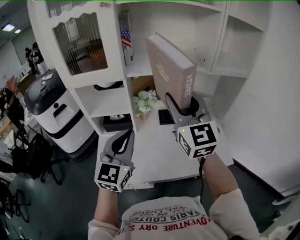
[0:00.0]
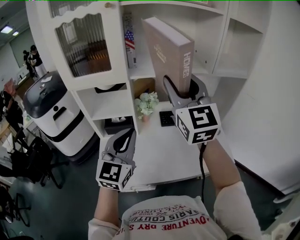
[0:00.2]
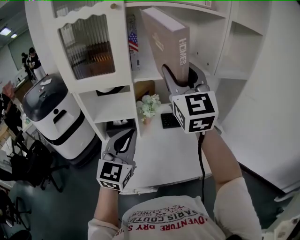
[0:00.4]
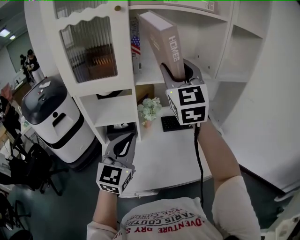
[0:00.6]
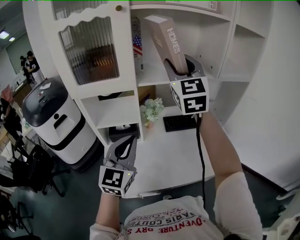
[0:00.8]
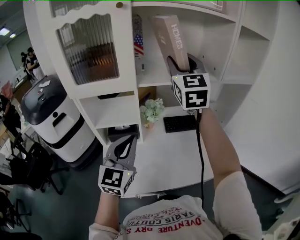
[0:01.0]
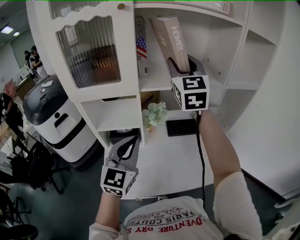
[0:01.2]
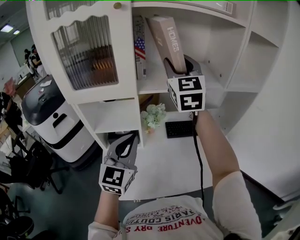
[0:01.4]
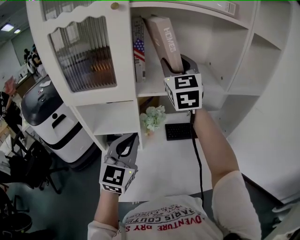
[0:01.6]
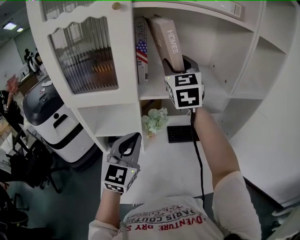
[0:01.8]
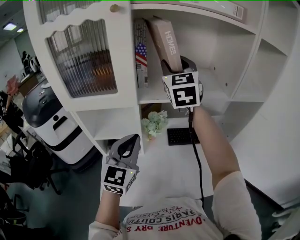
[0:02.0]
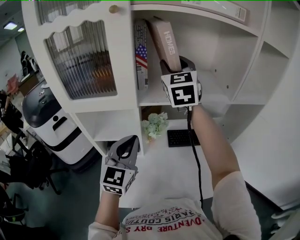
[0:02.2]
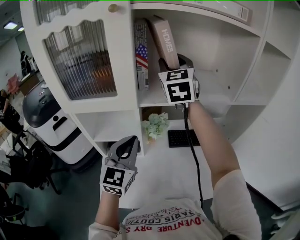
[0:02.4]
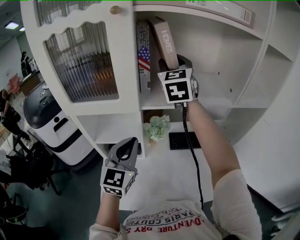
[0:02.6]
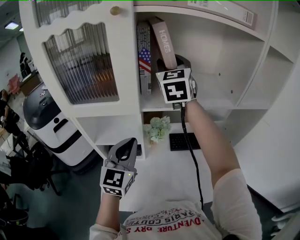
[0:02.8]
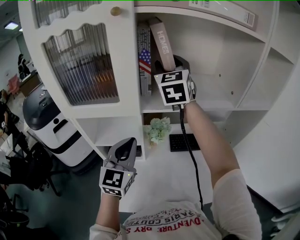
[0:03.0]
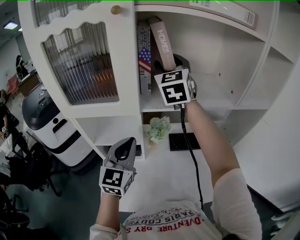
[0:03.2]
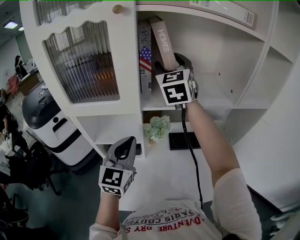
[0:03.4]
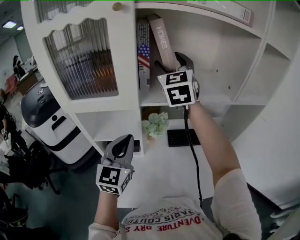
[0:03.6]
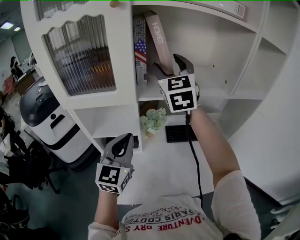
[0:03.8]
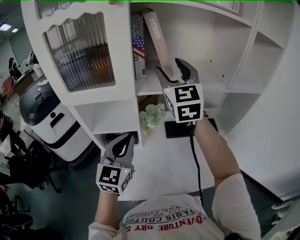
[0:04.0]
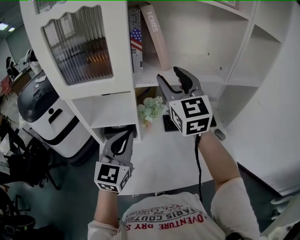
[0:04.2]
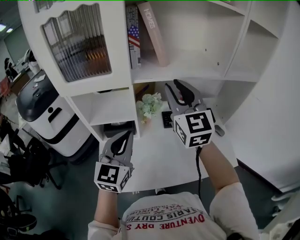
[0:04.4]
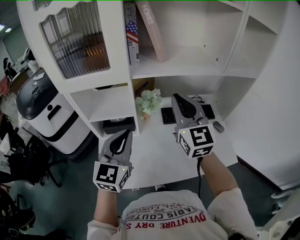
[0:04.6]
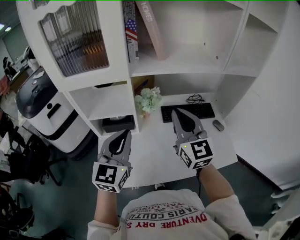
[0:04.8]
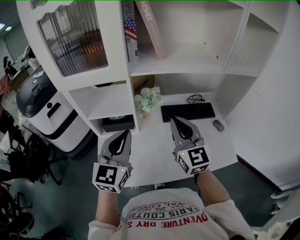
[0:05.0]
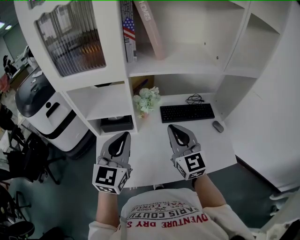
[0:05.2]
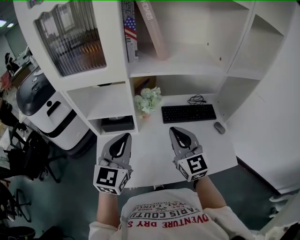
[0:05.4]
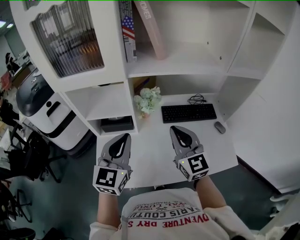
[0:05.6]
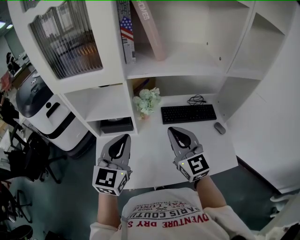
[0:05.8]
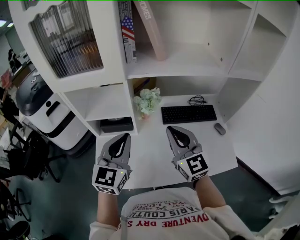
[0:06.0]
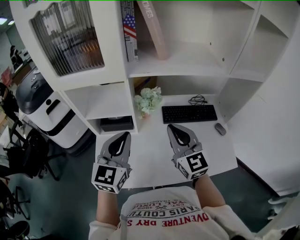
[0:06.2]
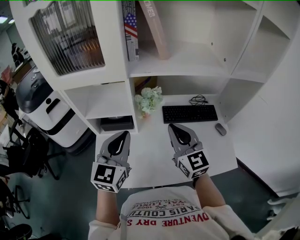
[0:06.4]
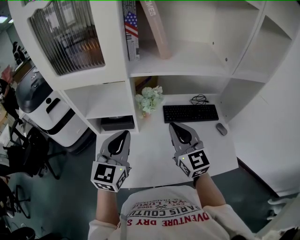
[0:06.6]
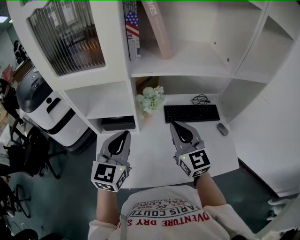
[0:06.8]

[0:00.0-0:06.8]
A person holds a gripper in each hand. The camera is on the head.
0:00.0 to 0:01.4: The right gripper is displaced forward by roughly 20 cm, while the left gripper is displaced forward and to the left by approximately 10 cm.
0:01.4 to 0:02.8: The left gripper travels forward by roughly 10 cm. Meanwhile the right gripper travels forward and to the left by about 10 cm.
0:02.8 to 0:04.0: The right gripper heads backward, covering approximately 10 cm. Meanwhile the left gripper goes some 5 cm backward.
0:04.0 to 0:05.4: The left gripper changes place by approximately 5 cm, while the right gripper heads downward and backward, covering about 30 cm, and closes its fingers.
0:05.4 to 0:06.8: The grippers stay close to where they were, moving slightly.

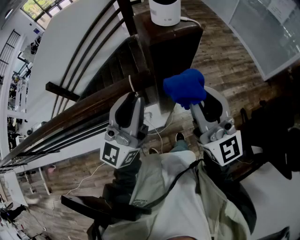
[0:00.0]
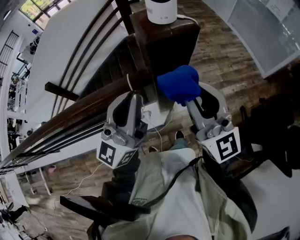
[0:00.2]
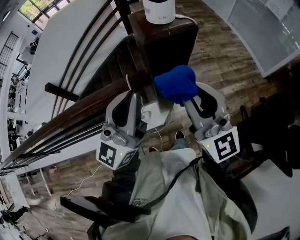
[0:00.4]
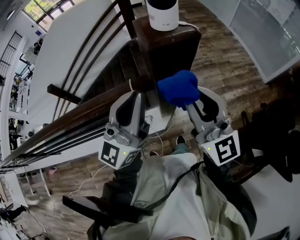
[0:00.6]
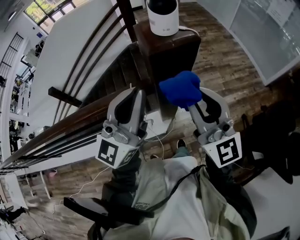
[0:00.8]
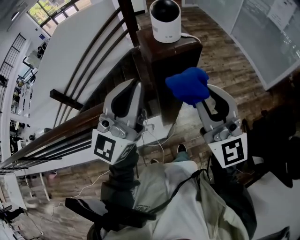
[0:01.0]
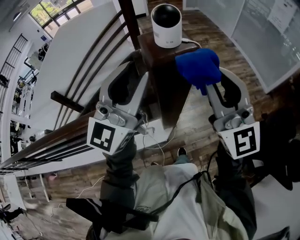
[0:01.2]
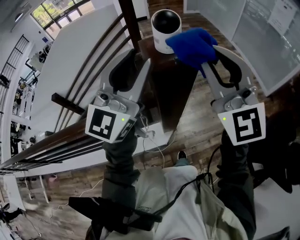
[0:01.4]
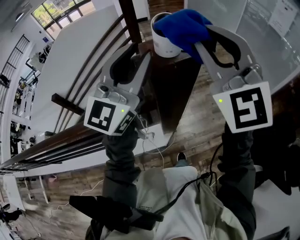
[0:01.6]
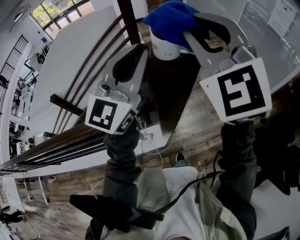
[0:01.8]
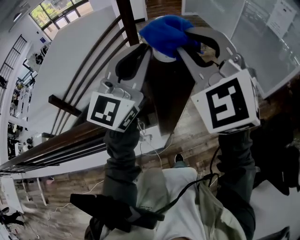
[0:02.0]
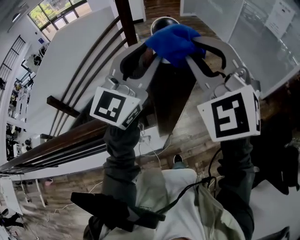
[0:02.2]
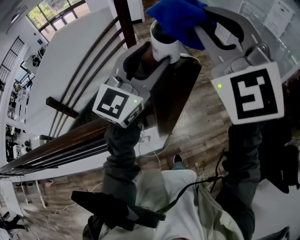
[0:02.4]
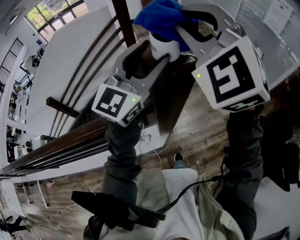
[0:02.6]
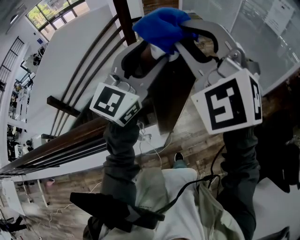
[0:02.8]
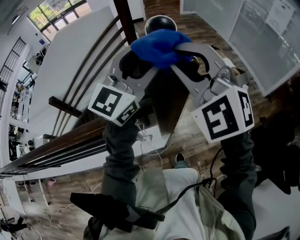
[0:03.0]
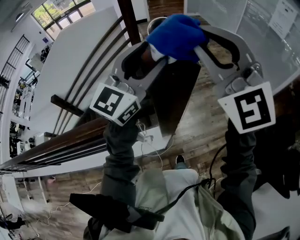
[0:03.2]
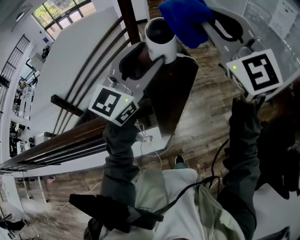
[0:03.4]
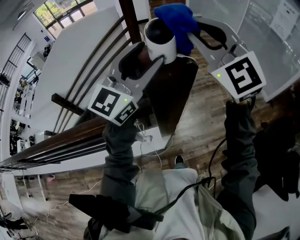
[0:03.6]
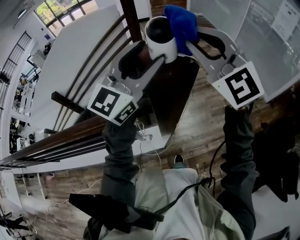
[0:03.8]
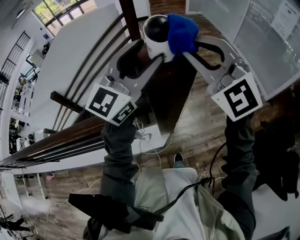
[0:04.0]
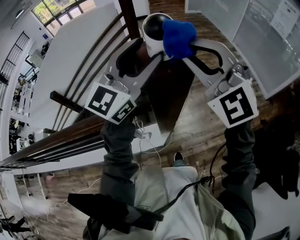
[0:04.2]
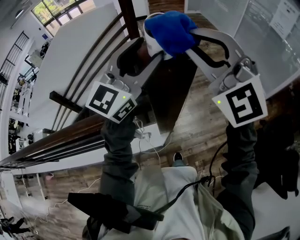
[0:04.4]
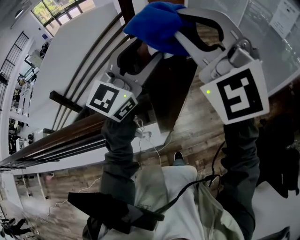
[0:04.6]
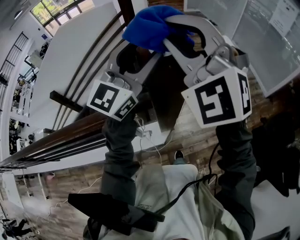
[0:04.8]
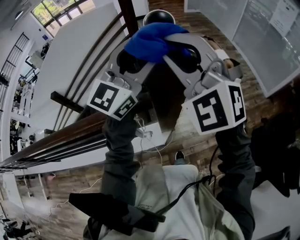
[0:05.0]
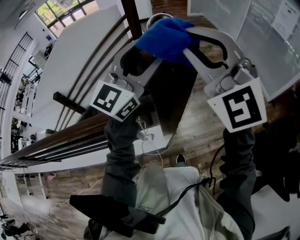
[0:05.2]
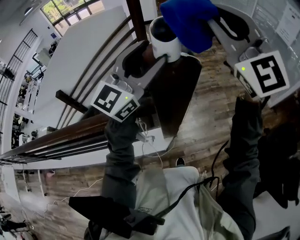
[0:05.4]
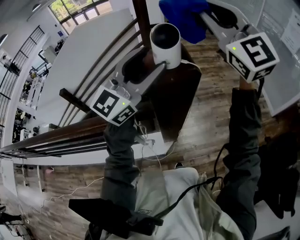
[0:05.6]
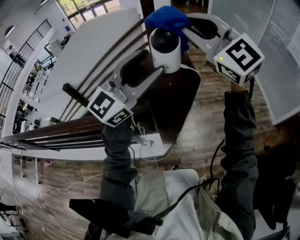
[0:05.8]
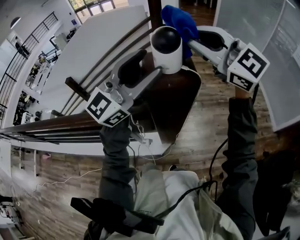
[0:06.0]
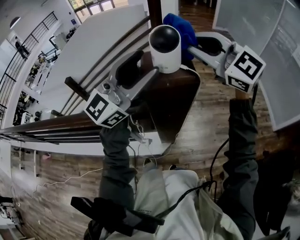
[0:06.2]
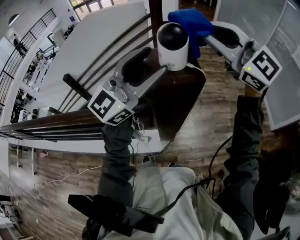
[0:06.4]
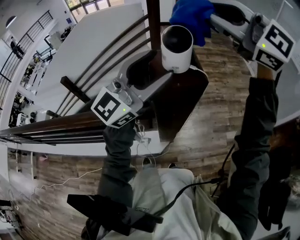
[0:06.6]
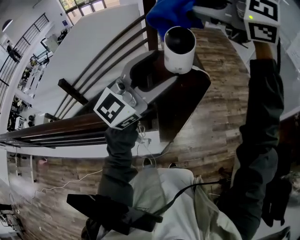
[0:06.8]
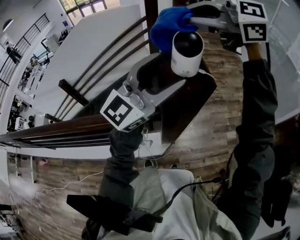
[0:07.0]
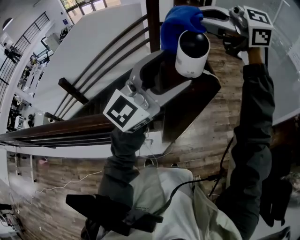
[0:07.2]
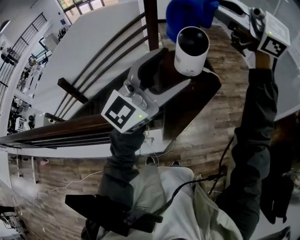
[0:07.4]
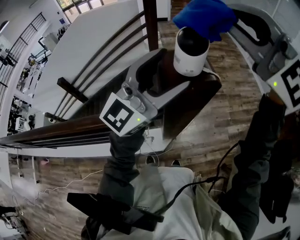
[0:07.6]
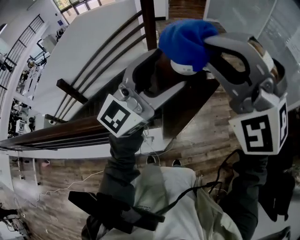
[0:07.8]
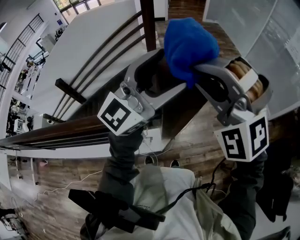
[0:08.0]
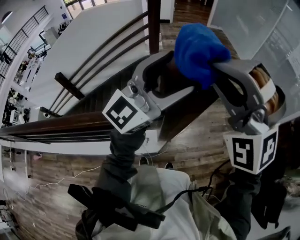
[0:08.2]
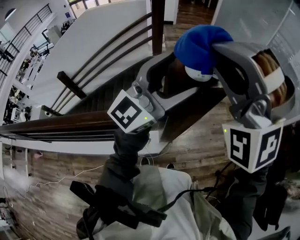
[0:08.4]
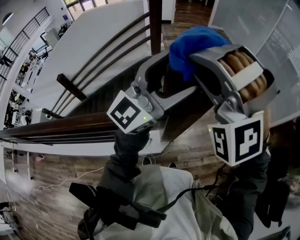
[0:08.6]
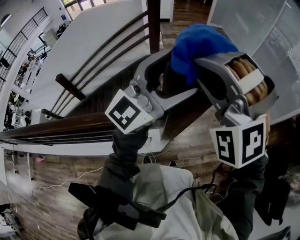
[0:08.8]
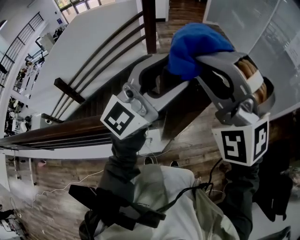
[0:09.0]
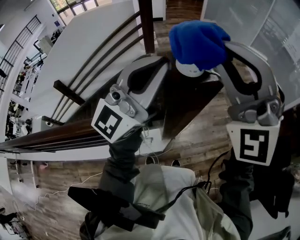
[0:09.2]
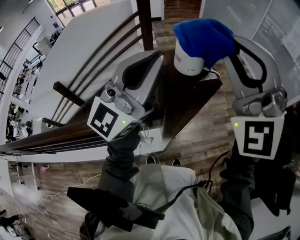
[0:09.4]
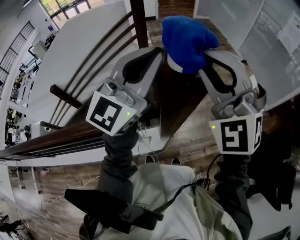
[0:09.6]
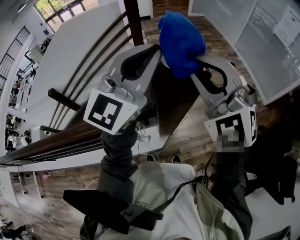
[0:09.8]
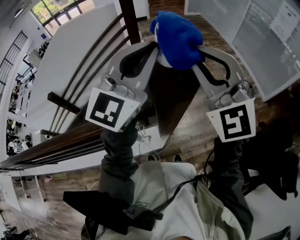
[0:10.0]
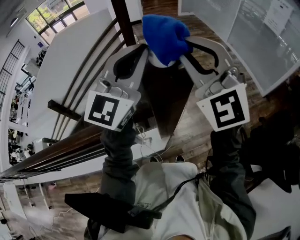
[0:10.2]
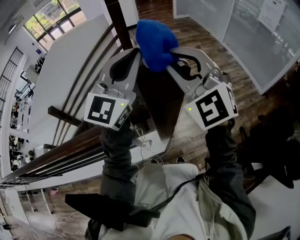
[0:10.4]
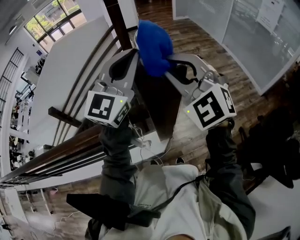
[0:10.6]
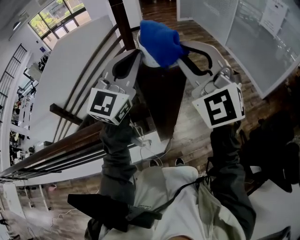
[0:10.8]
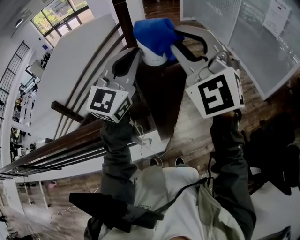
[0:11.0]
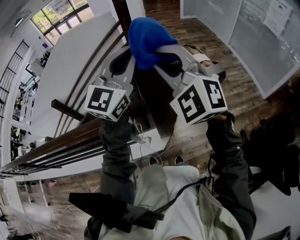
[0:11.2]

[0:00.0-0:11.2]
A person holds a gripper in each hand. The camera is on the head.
0:00.0 to 0:01.6: The left gripper travels forward and upward by approximately 20 cm. The right gripper is displaced upward and forward by some 20 cm, and turns by roughly 40 degrees.
0:01.6 to 0:03.2: The right gripper moves up and down over roughly 10 cm, changing direction 2 times. Meanwhile the left gripper moves roughly 5 cm, and opens.
0:03.2 to 0:04.8: The right gripper goes approximately 5 cm to the left, and travels downward and back again, roughly 5 cm each way.
0:04.8 to 0:06.4: The right gripper swings up and down, roughly 10 cm each way, with 3 reversals, and rotates roughly 50 degrees.
0:06.4 to 0:08.0: The right gripper changes place by approximately 15 cm, and rolls counterclockwise, seen from behind, by about 50 degrees.
0:08.0 to 0:09.6: The right gripper goes up and down, about 10 cm each way, reversing 3 times, and changes its angle by roughly 30 degrees, while the left gripper closes.
0:09.6 to 0:11.2: The right gripper goes upward and returns, roughly 5 cm each way.

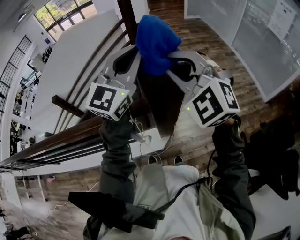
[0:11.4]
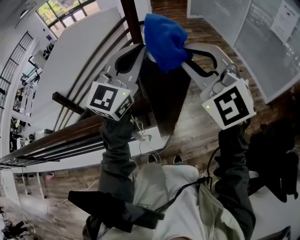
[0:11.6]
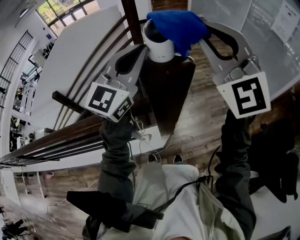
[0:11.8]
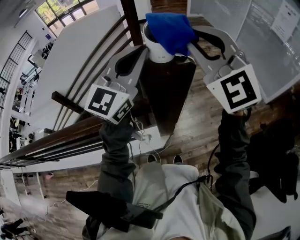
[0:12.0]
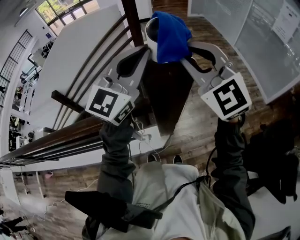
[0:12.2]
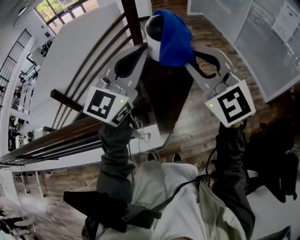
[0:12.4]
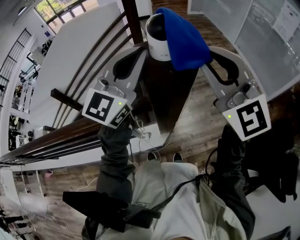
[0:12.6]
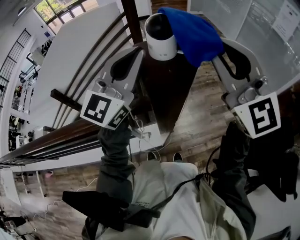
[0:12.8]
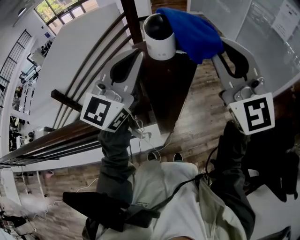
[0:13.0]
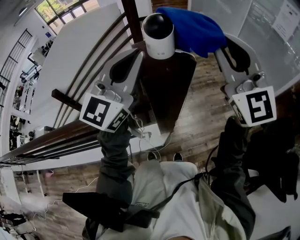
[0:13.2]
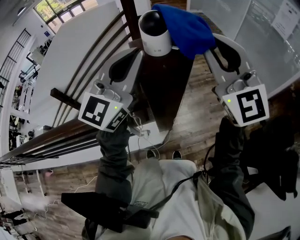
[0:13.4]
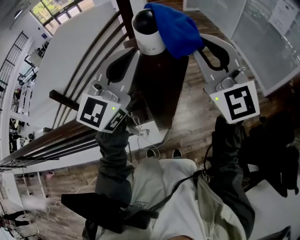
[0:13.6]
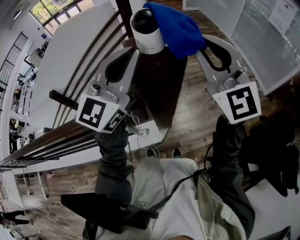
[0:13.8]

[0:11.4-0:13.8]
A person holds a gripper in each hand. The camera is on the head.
0:11.4 to 0:12.6: The right gripper shifts about 5 cm to the right, and rotates approximately 30 degrees.
0:12.6 to 0:13.8: The grippers move only a little.

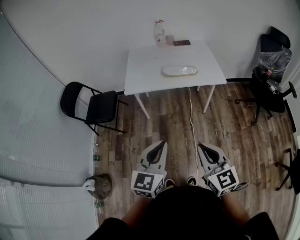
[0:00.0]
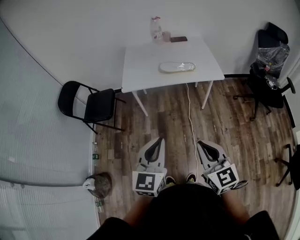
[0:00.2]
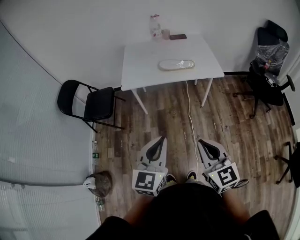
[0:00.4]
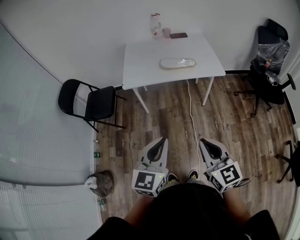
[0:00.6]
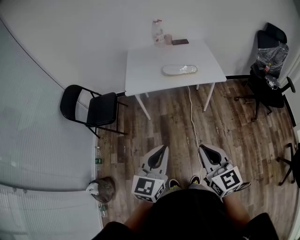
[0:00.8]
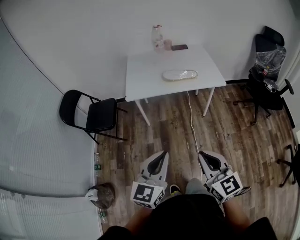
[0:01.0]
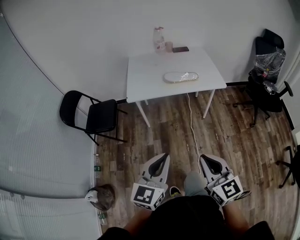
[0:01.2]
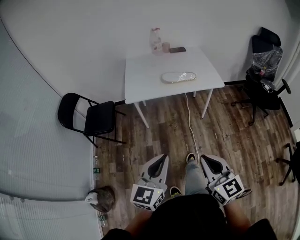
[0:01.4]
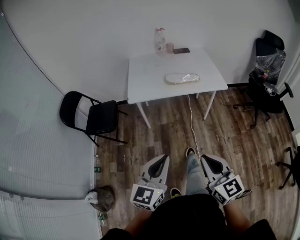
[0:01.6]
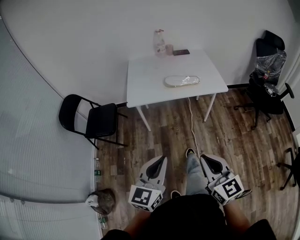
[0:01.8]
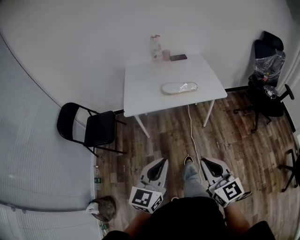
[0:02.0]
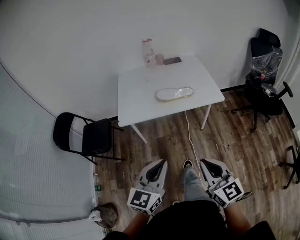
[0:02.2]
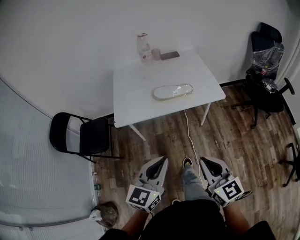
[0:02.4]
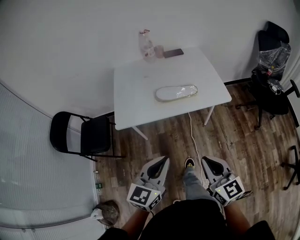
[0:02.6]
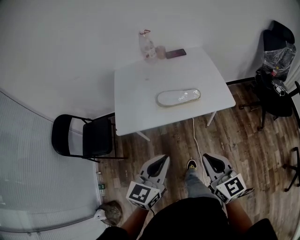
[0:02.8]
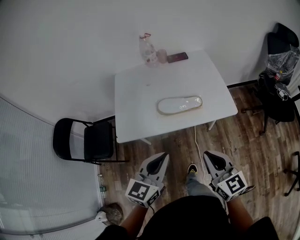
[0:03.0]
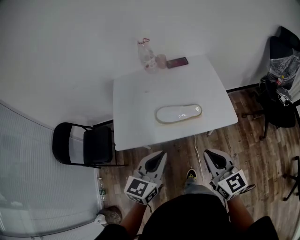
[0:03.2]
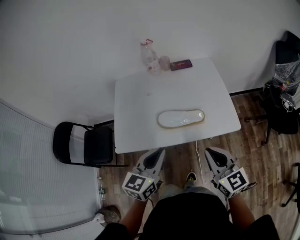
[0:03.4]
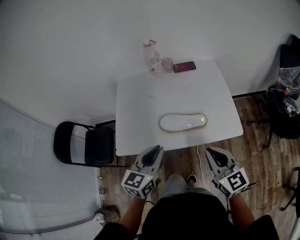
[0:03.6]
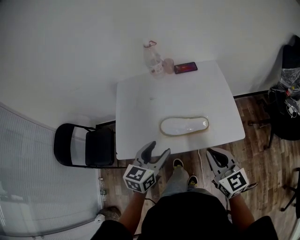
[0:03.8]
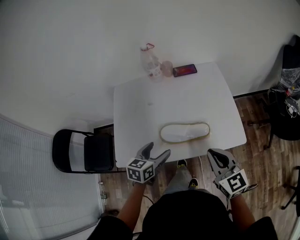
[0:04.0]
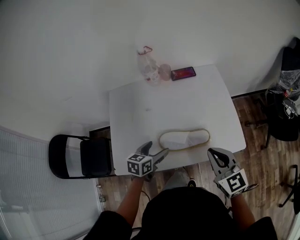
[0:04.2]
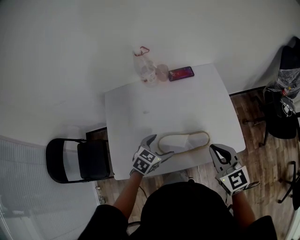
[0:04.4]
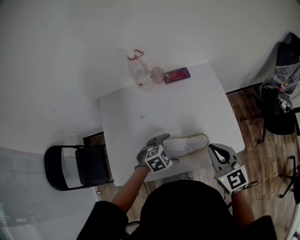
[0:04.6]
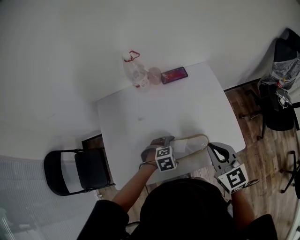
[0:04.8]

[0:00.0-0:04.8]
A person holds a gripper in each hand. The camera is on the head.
0:00.0 to 0:01.6: The grippers both shift to the left by about 5 cm.
0:01.6 to 0:03.2: The two grippers travel together, forward, approximately 40 cm.
0:03.2 to 0:04.8: The left gripper is displaced downward by approximately 25 cm, angles its fingers downward, by some 50 degrees, and opens; the right gripper shifts by about 25 cm.